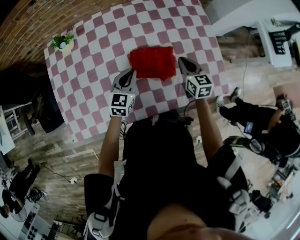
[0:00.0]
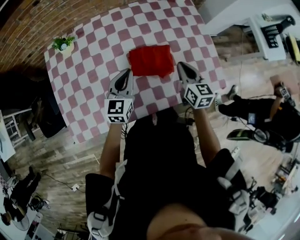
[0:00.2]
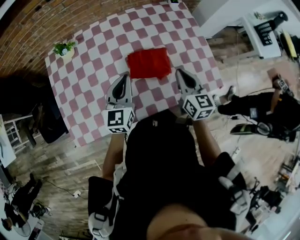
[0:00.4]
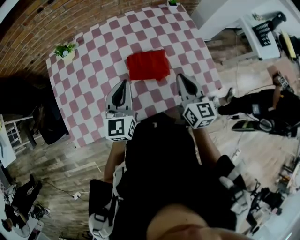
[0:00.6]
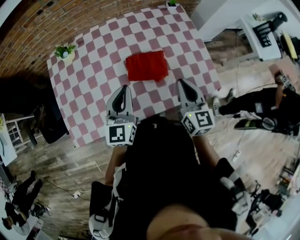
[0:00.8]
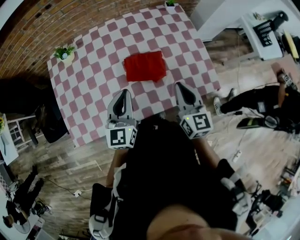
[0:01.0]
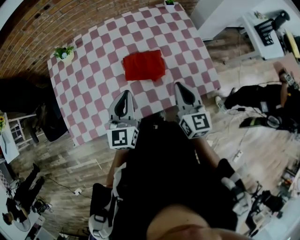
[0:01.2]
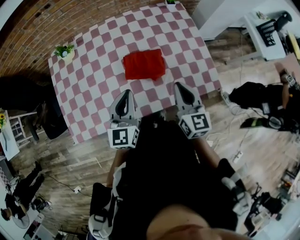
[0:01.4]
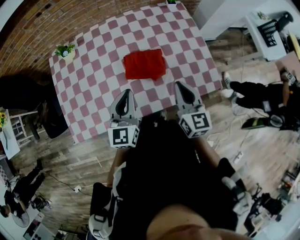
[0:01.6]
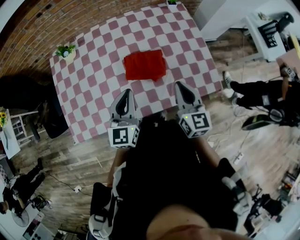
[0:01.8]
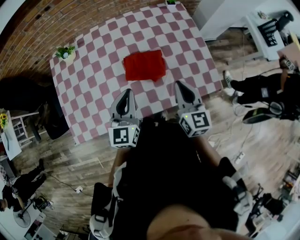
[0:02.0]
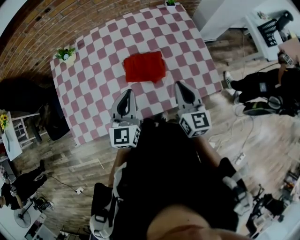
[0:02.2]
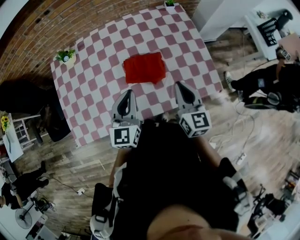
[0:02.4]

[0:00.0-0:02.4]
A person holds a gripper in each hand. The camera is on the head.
0:00.0 to 0:01.2: Both grippers travel together upward and backward, some 20 cm.
0:01.2 to 0:02.4: There are only small adjustments of the grippers.

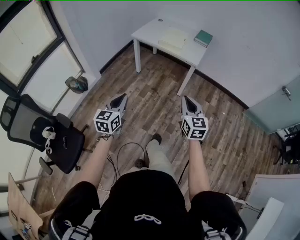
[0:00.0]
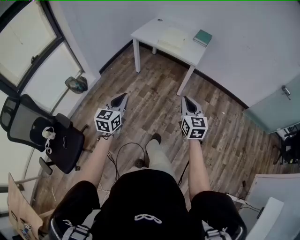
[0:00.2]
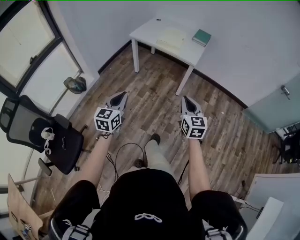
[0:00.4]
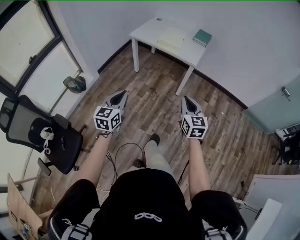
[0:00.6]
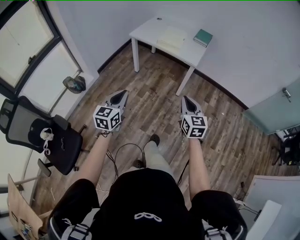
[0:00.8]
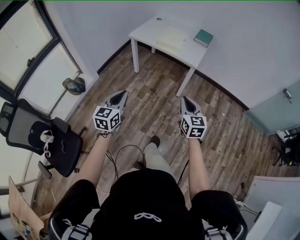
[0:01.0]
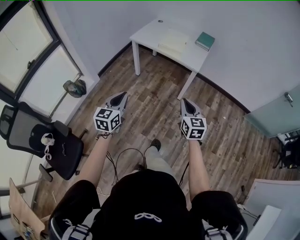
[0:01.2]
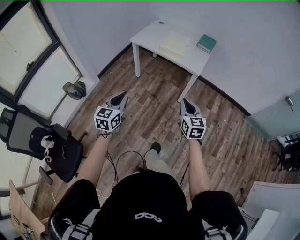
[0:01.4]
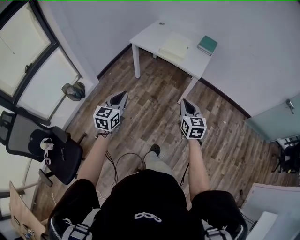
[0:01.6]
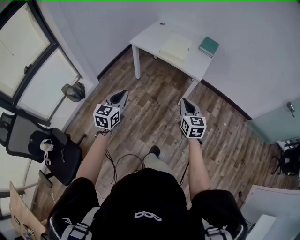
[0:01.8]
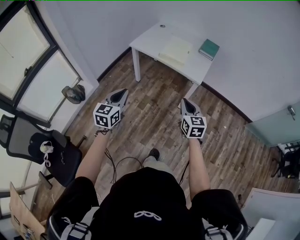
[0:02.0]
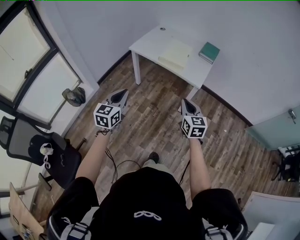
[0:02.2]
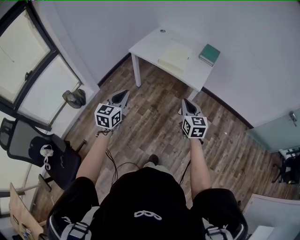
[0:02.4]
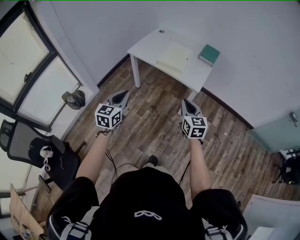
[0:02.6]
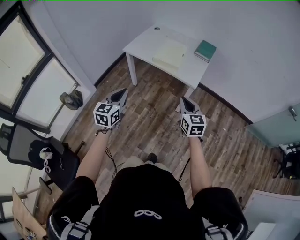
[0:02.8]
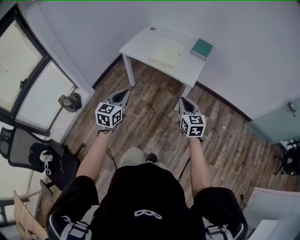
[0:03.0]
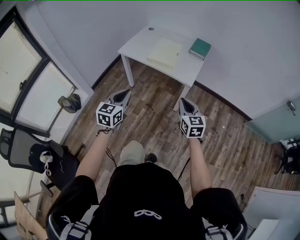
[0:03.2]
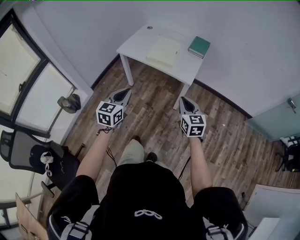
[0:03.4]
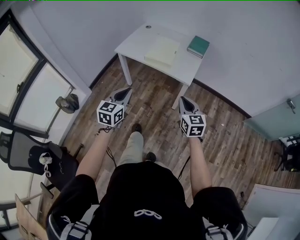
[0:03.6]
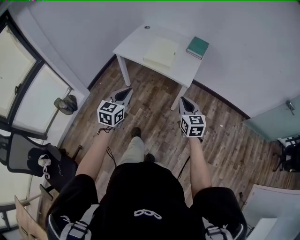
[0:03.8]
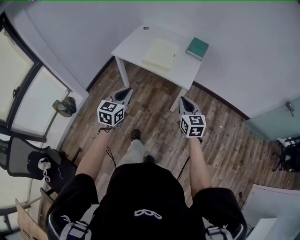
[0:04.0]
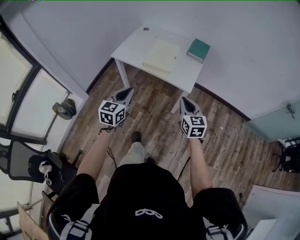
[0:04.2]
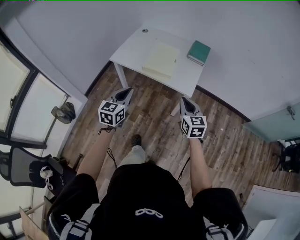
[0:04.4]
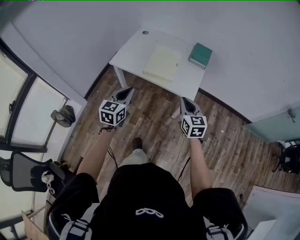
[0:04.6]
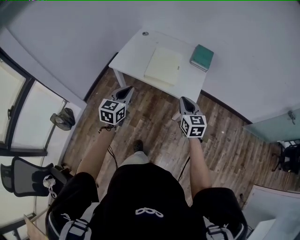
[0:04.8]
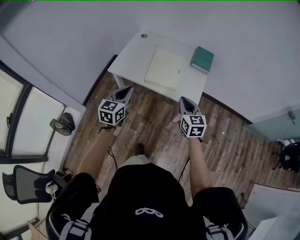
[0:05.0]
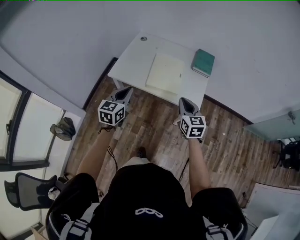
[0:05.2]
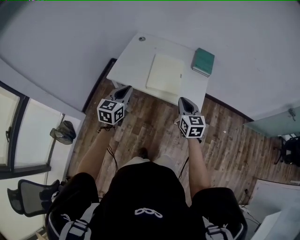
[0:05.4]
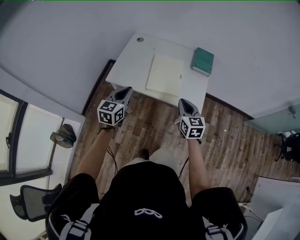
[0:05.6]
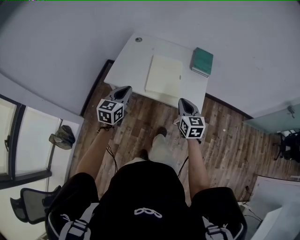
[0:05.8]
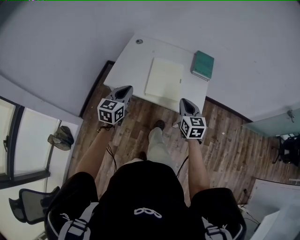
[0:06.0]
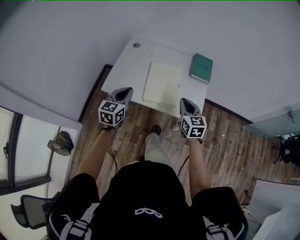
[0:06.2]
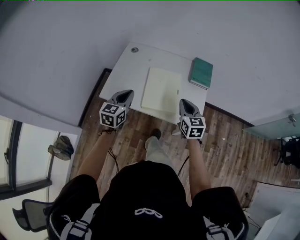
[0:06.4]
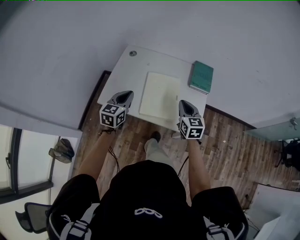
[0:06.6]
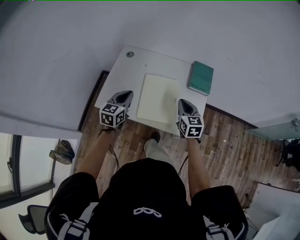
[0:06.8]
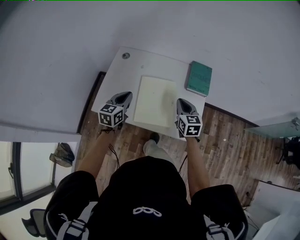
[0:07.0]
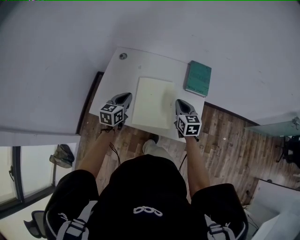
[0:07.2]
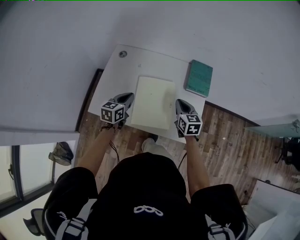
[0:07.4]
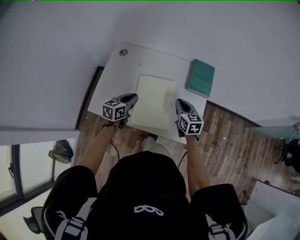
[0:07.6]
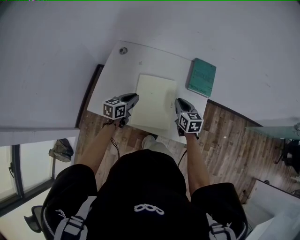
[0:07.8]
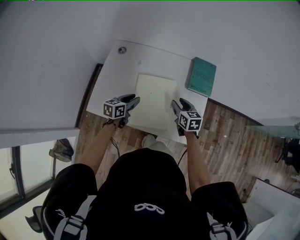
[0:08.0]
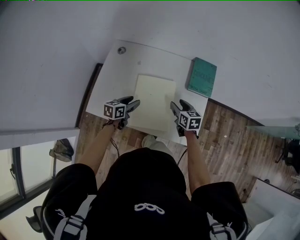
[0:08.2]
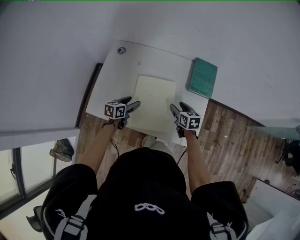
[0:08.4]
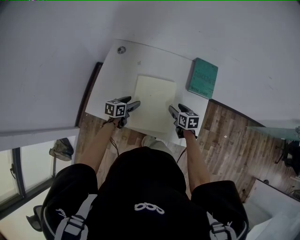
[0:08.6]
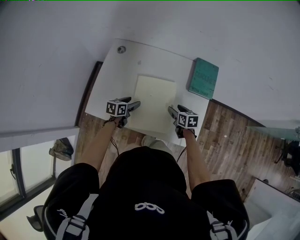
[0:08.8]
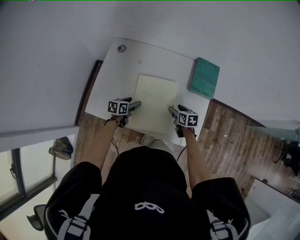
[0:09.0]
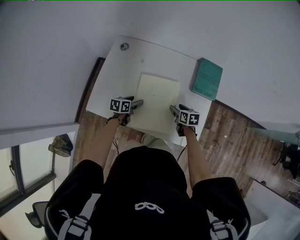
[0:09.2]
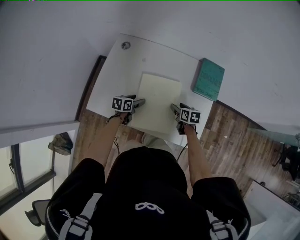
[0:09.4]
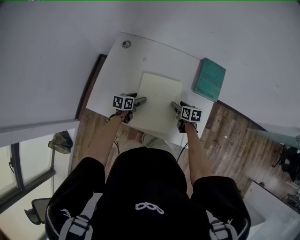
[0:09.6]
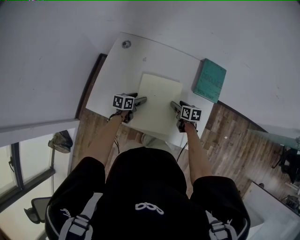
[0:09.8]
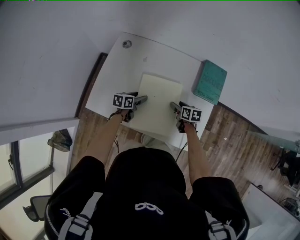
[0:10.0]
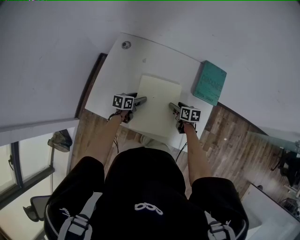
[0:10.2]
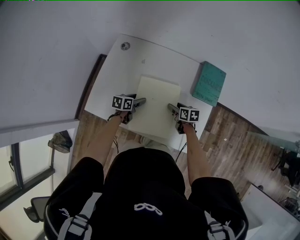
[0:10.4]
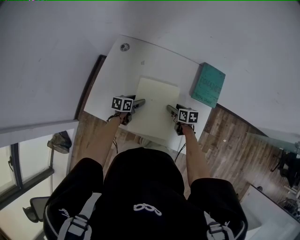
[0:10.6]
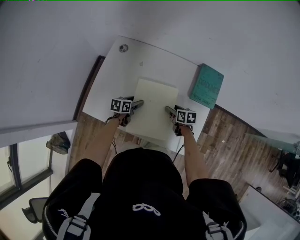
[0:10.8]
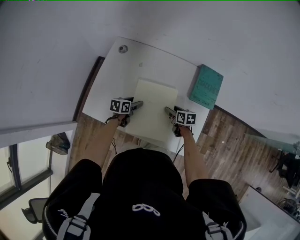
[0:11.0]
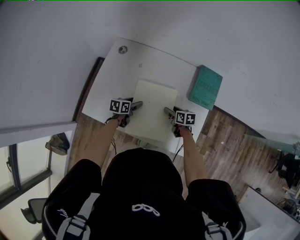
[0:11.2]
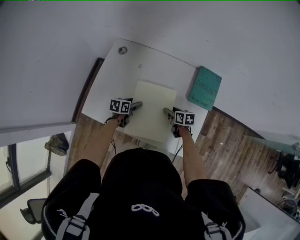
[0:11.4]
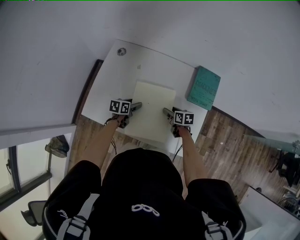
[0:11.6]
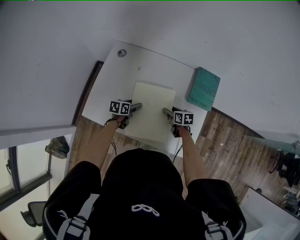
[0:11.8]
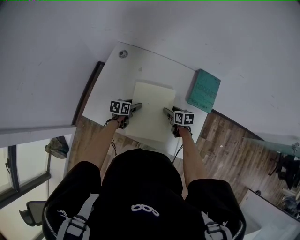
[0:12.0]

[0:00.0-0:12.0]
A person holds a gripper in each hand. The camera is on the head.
0:00.0 to 0:01.6: The grippers both shift forward by about 15 cm.
0:01.6 to 0:03.0: The grippers both shift forward and to the right by about 15 cm.
0:03.0 to 0:04.4: The grippers both shift forward by roughly 15 cm.
0:04.4 to 0:06.0: Both grippers travel together forward and to the left, approximately 25 cm.
0:06.0 to 0:07.6: The right gripper travels forward by some 25 cm. The left gripper shifts about 30 cm forward and downward, and rotates about 20 degrees.
0:07.6 to 0:09.0: Both grippers travel together downward, approximately 15 cm. The right gripper turns by about 30 degrees, and opens up, while the left gripper turns by some 20 degrees, and opens.
0:09.0 to 0:10.4: The right gripper ends up some 5 cm from where it was.
0:10.4 to 0:12.0: The grippers move only a little.

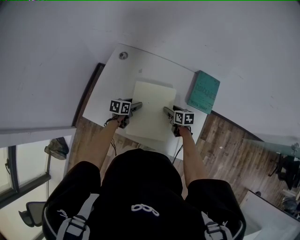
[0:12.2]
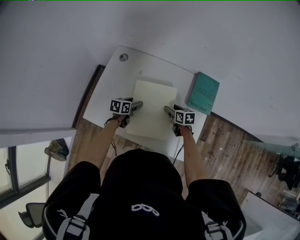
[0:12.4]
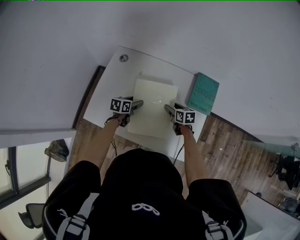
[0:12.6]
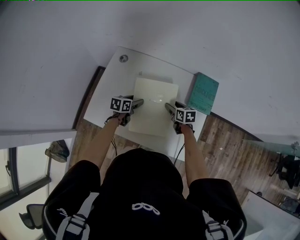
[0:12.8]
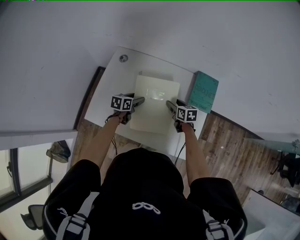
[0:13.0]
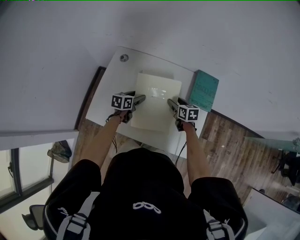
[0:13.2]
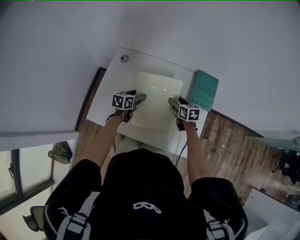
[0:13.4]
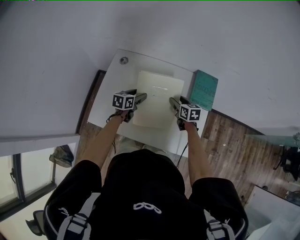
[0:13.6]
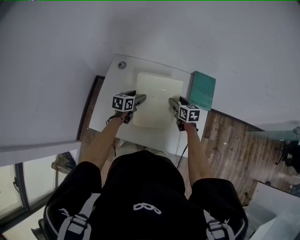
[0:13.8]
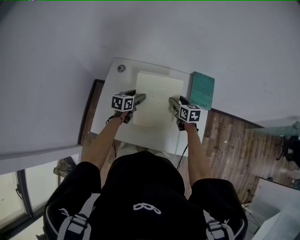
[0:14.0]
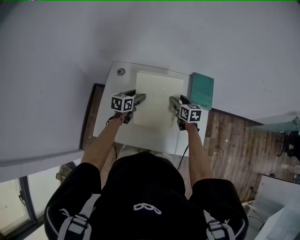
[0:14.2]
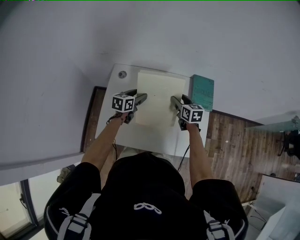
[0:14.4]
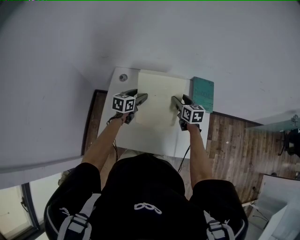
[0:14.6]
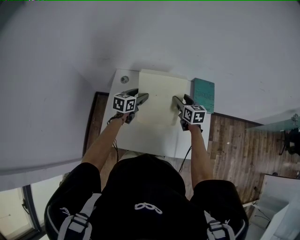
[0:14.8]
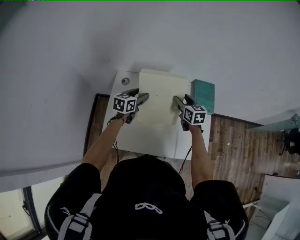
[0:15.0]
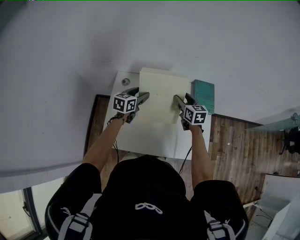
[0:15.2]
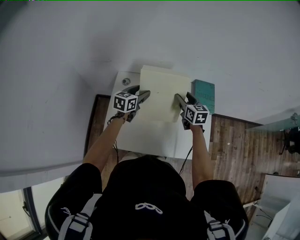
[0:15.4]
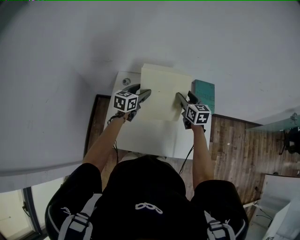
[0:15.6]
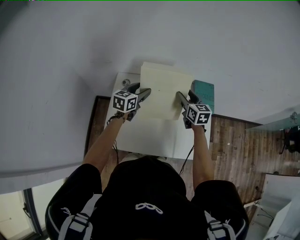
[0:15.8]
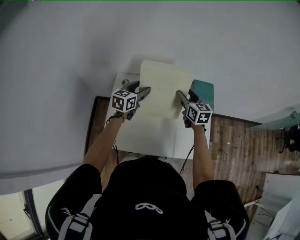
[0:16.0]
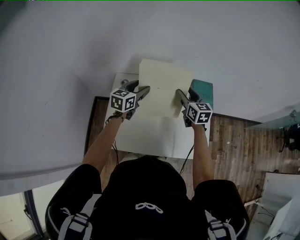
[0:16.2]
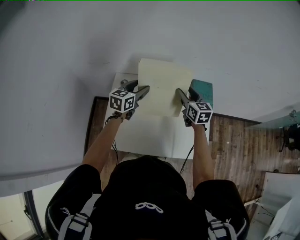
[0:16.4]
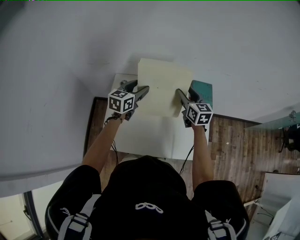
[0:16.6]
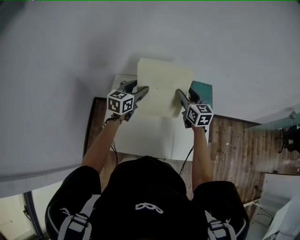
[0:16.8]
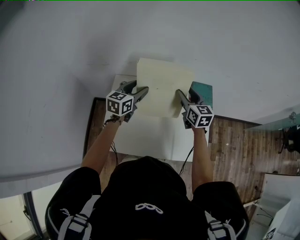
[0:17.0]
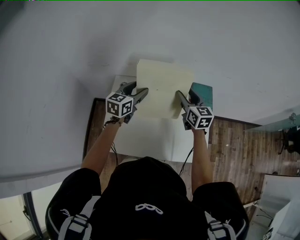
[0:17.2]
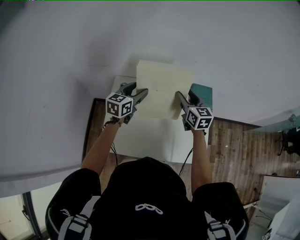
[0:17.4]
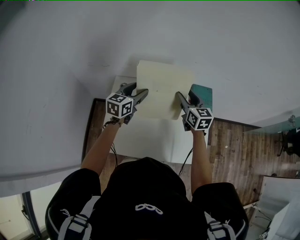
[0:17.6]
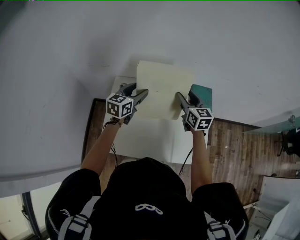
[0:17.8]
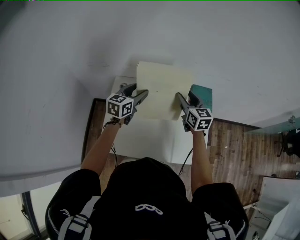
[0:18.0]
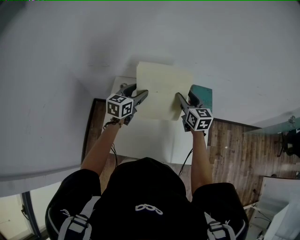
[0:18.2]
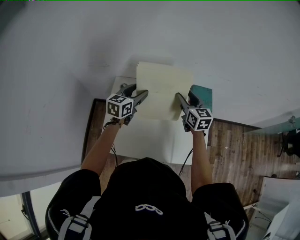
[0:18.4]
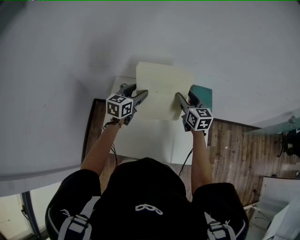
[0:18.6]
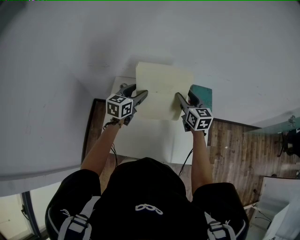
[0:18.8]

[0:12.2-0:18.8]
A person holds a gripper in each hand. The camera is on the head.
0:12.2 to 0:13.8: The right gripper shifts some 10 cm upward. Meanwhile the left gripper heads upward and forward, covering some 10 cm.
0:13.8 to 0:15.4: Both grippers travel together upward, about 10 cm.
0:15.4 to 0:17.2: The grippers both shift upward by about 10 cm.
0:17.2 to 0:18.8: Both grippers stay put.

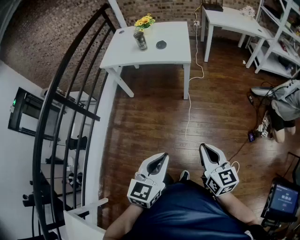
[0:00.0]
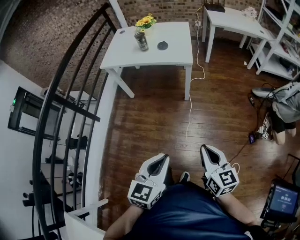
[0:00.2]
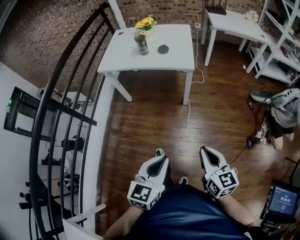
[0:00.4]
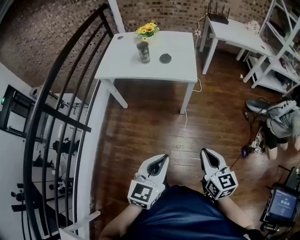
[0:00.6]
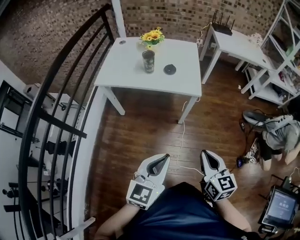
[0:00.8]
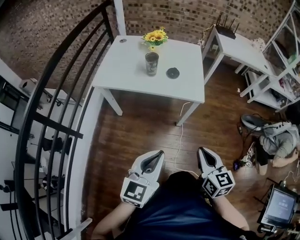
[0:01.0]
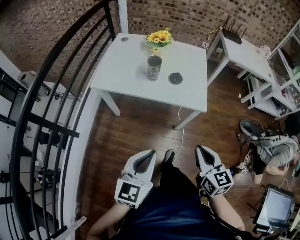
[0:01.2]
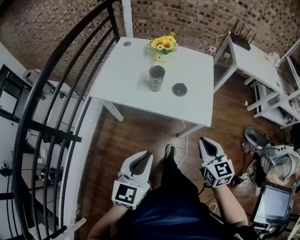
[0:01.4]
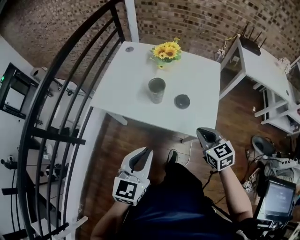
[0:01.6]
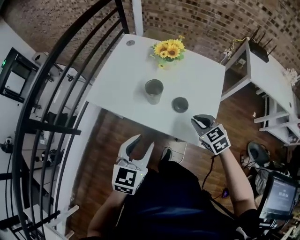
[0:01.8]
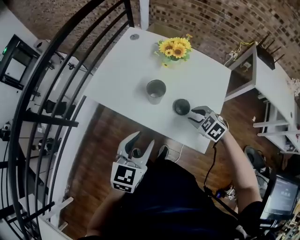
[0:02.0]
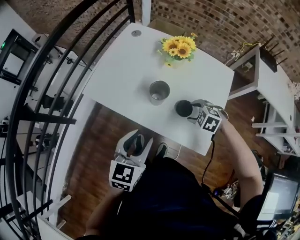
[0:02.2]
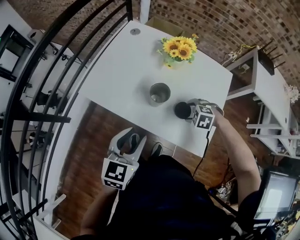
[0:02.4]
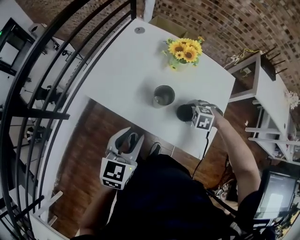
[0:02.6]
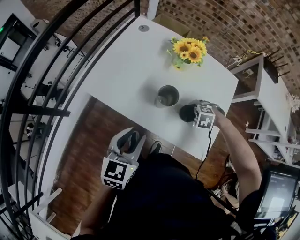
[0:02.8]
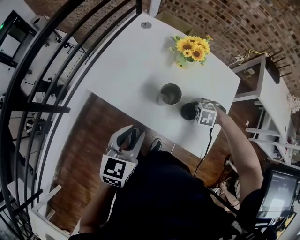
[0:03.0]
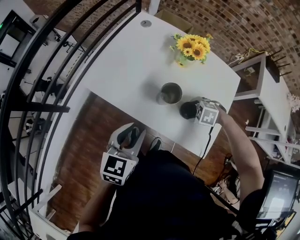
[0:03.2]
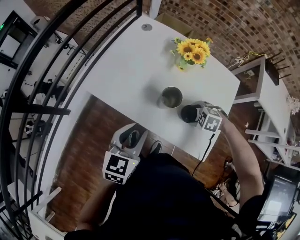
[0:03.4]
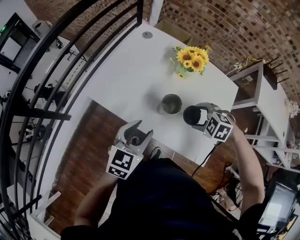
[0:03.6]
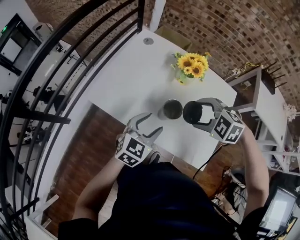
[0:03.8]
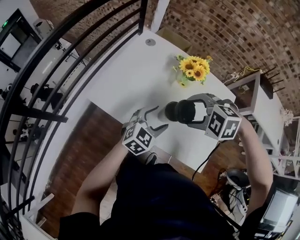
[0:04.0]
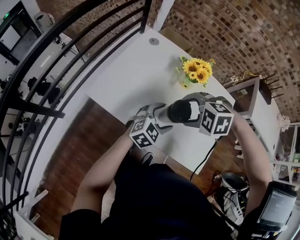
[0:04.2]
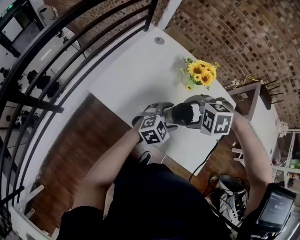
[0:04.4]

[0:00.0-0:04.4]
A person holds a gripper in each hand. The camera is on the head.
0:00.0 to 0:01.4: The two grippers travel together, forward, approximately 50 cm.
0:01.4 to 0:03.0: The left gripper changes place by roughly 25 cm. The right gripper ends up about 35 cm from where it was, tilts its fingers some 60 degrees downward, and opens up.
0:03.0 to 0:04.4: The left gripper shifts by approximately 20 cm, rotates some 40 degrees, and opens up. Meanwhile the right gripper heads upward, covering roughly 15 cm.
